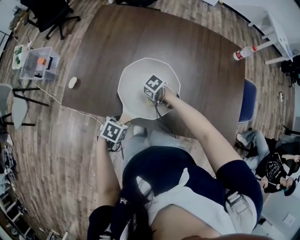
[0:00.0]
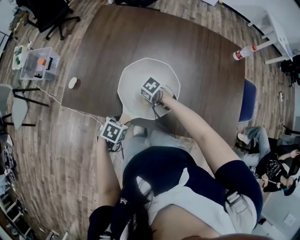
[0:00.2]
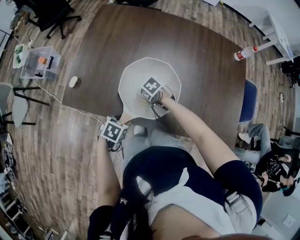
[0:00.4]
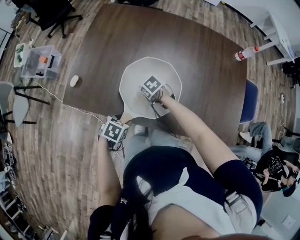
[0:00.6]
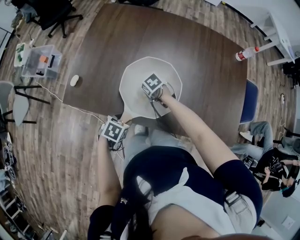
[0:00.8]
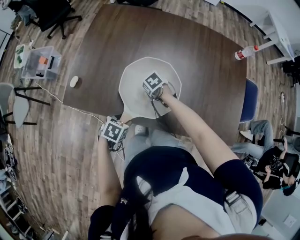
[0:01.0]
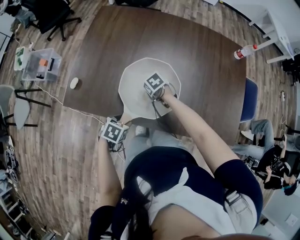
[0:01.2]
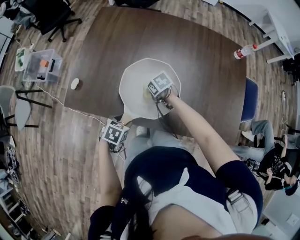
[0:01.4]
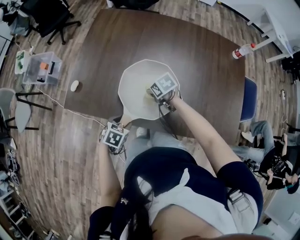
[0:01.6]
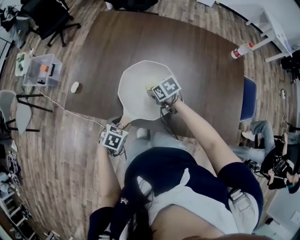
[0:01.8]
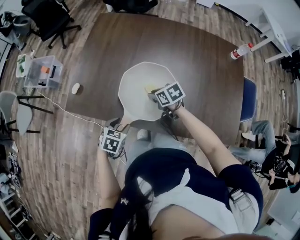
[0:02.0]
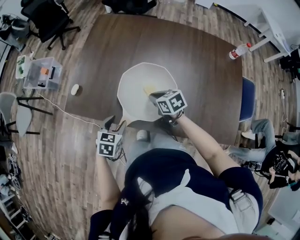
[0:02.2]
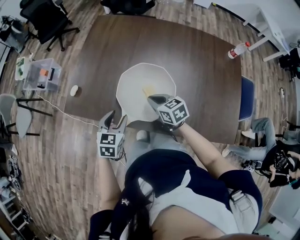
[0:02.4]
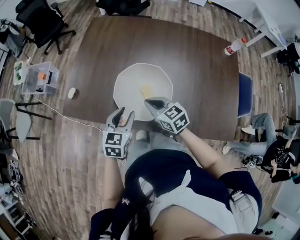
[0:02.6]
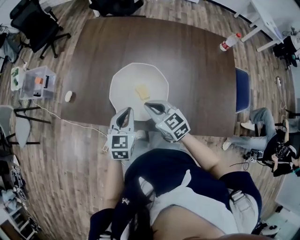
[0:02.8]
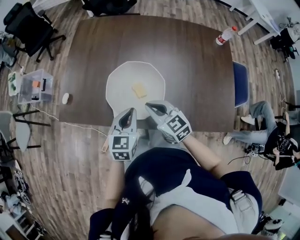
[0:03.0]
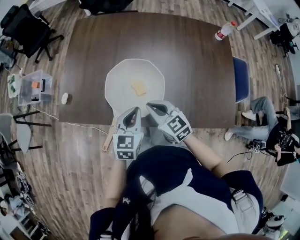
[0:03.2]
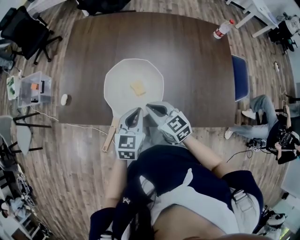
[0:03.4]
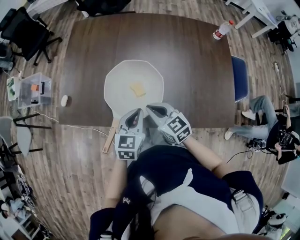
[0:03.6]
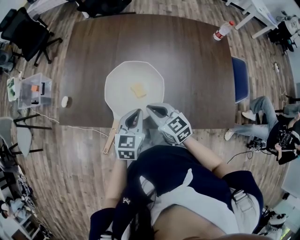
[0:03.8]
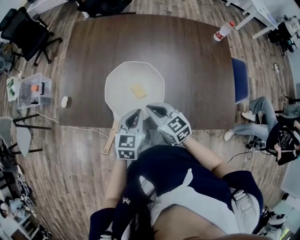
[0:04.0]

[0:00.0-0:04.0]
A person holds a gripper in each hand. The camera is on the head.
0.0 to 1.4 s: The right gripper shifts by about 5 cm, and rotates some 20 degrees.
1.4 to 2.6 s: Both grippers travel together upward, about 15 cm. The left gripper angles its fingers upward, by about 30 degrees; the right gripper points its fingers about 30 degrees further upward.
2.6 to 4.0 s: The right gripper ends up some 5 cm from where it was; the left gripper heads to the right, covering approximately 10 cm, and closes.

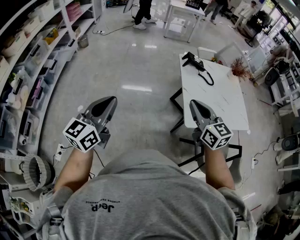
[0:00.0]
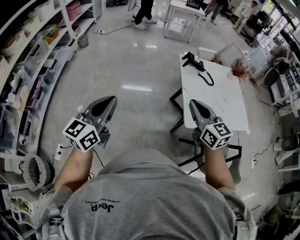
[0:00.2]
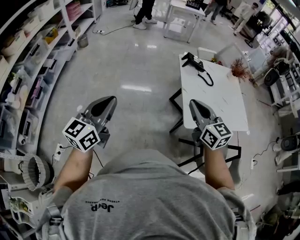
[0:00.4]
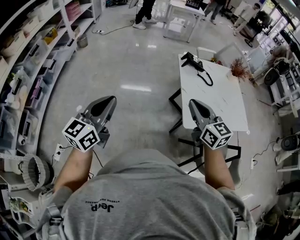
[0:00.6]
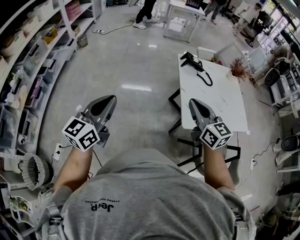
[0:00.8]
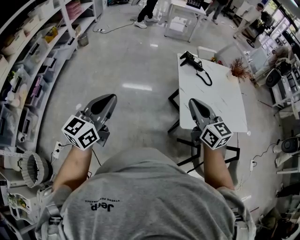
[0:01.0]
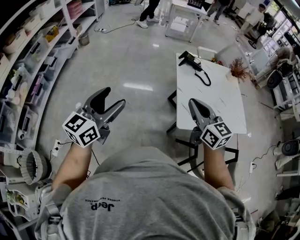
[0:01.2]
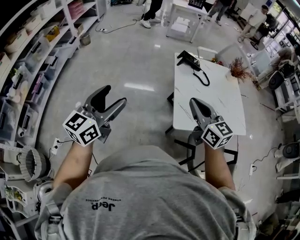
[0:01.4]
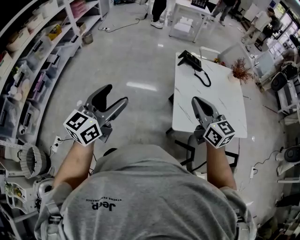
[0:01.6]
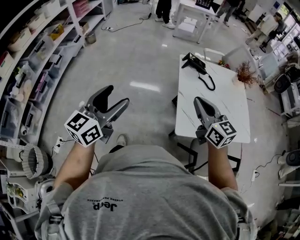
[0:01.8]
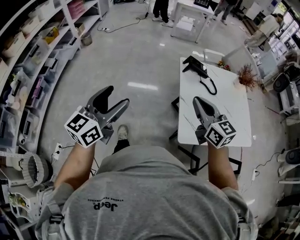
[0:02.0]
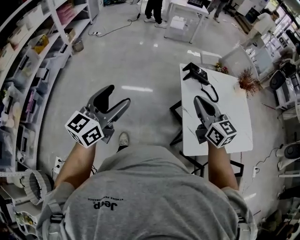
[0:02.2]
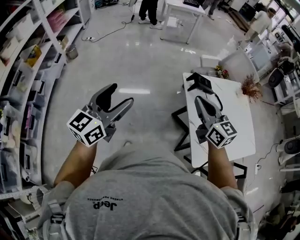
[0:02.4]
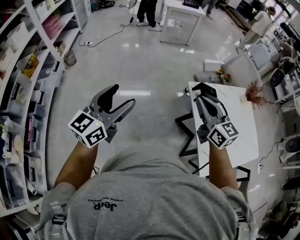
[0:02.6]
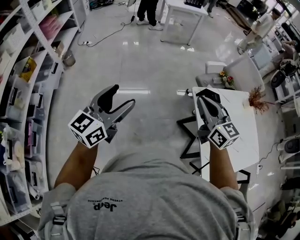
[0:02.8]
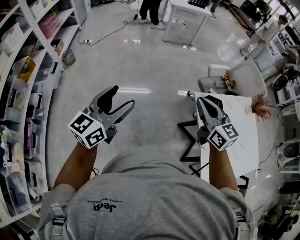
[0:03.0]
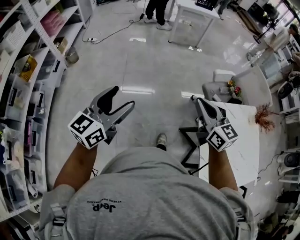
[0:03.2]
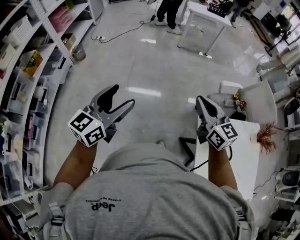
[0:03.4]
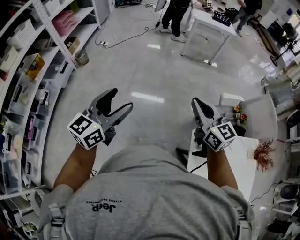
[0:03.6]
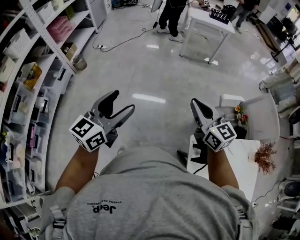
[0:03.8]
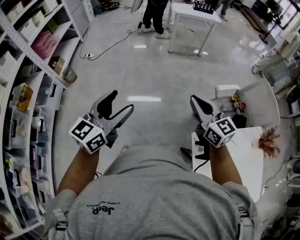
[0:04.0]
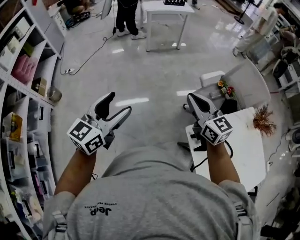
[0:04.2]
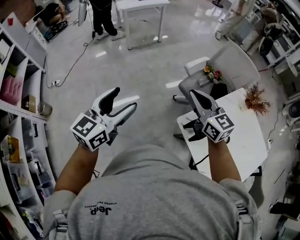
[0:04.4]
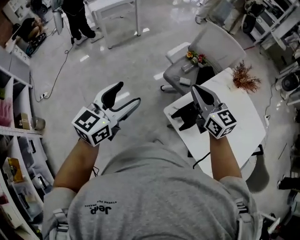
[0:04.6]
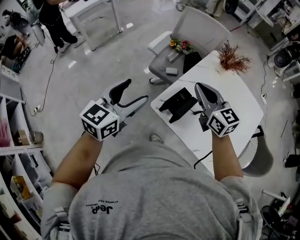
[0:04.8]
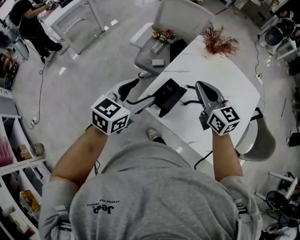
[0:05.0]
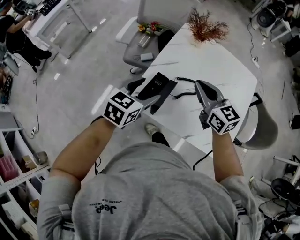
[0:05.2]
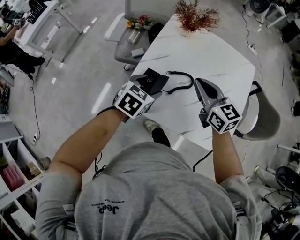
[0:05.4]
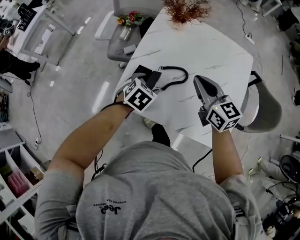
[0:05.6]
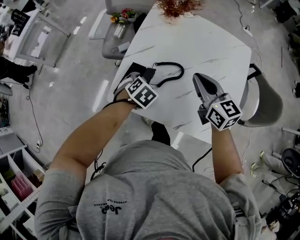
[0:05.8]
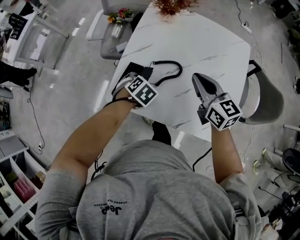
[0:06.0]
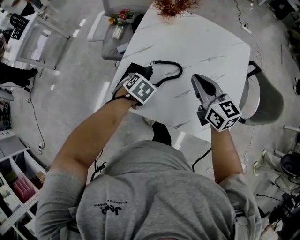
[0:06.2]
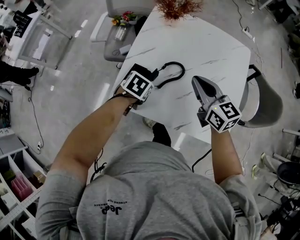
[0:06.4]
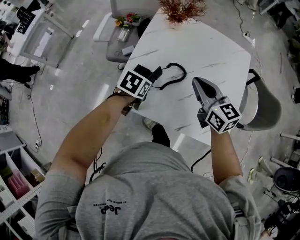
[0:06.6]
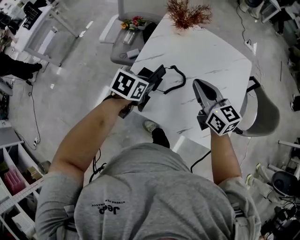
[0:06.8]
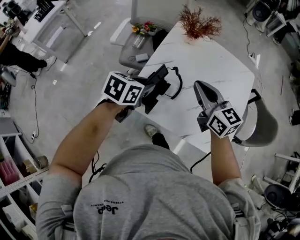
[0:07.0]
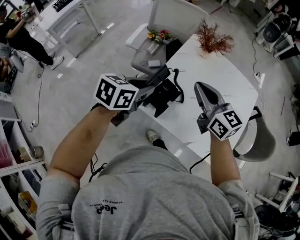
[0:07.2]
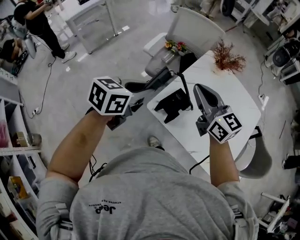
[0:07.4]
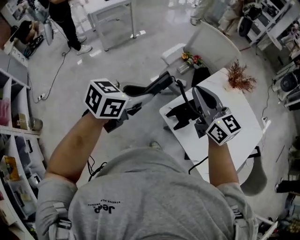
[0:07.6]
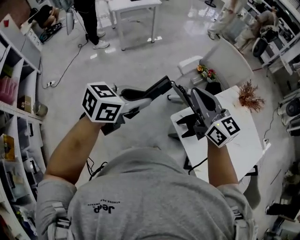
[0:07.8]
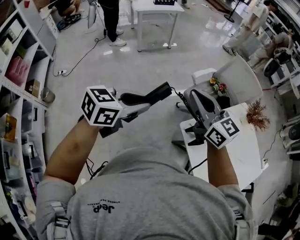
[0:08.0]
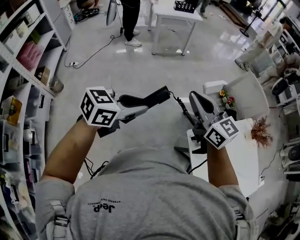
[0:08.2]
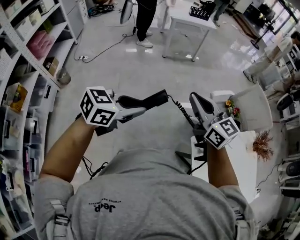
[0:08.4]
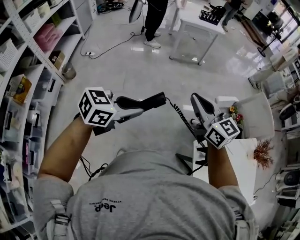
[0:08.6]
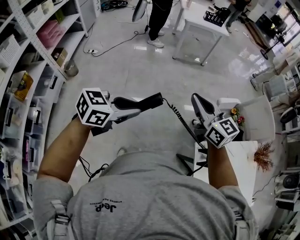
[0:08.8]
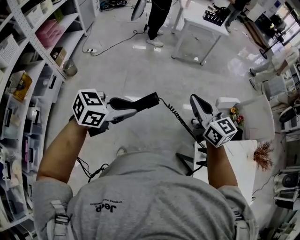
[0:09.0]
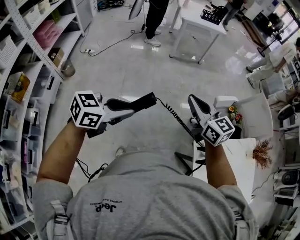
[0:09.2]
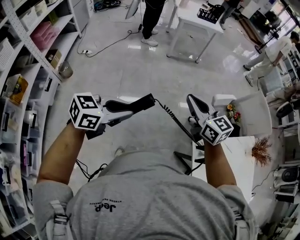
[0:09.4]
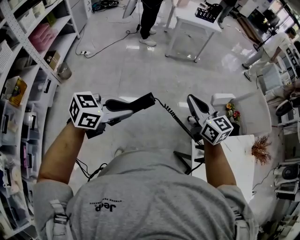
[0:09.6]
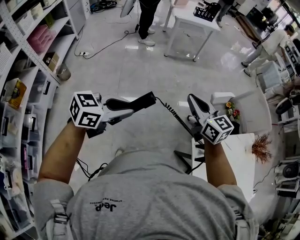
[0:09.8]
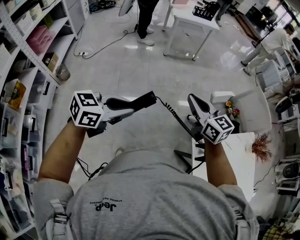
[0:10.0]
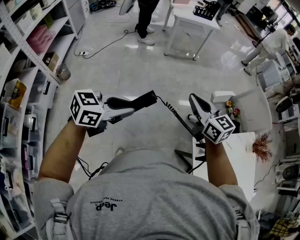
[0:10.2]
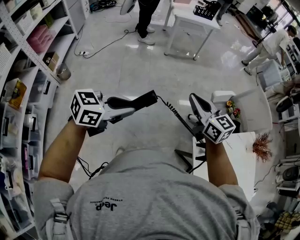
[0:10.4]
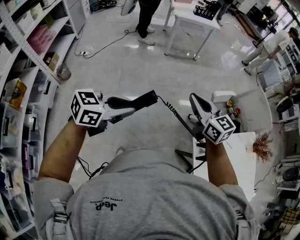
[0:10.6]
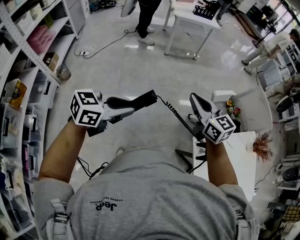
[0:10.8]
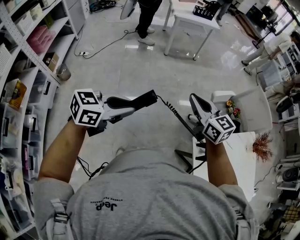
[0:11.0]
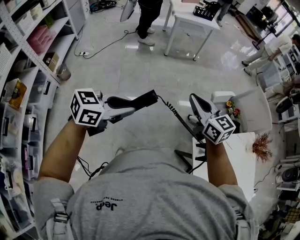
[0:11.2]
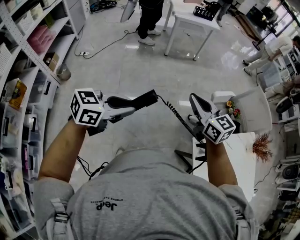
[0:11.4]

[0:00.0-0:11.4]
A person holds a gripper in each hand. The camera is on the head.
0.0 to 1.4 s: Both grippers travel together to the right, about 10 cm. The left gripper opens up.
1.4 to 2.8 s: Both grippers are carried forward, roughly 50 cm.
2.8 to 4.2 s: The two grippers go some 35 cm forward.
4.2 to 5.6 s: Both grippers are carried about 50 cm. The left gripper angles its fingers downward, by roughly 50 degrees; the right gripper changes its angle by about 50 degrees.
5.6 to 7.2 s: The left gripper shifts approximately 20 cm upward and to the left, turns by about 30 degrees, and closes. The right gripper moves to the left and upward, approximately 15 cm.
7.2 to 8.6 s: Both grippers are carried approximately 50 cm. The right gripper turns by about 60 degrees, while the left gripper rotates approximately 40 degrees.
8.6 to 10.0 s: The grippers stay close to where they were, moving slightly.
10.0 to 11.4 s: Both grippers stay put.

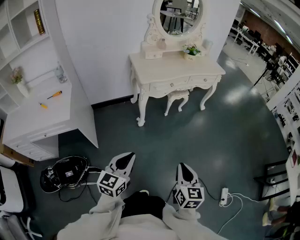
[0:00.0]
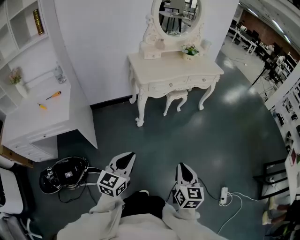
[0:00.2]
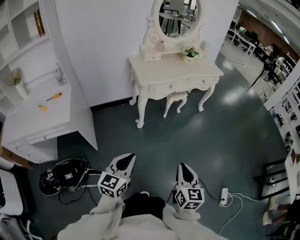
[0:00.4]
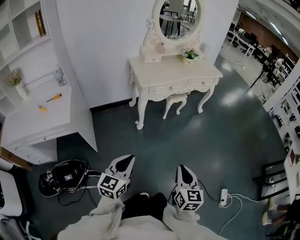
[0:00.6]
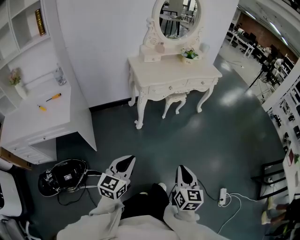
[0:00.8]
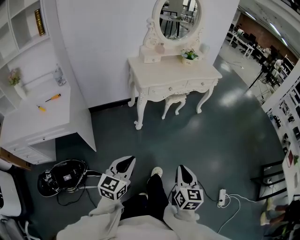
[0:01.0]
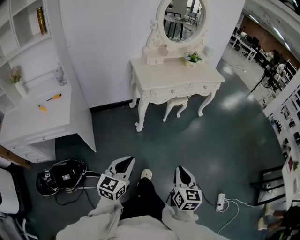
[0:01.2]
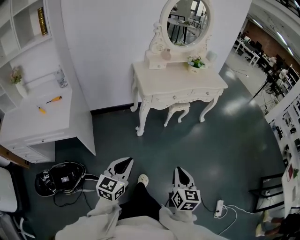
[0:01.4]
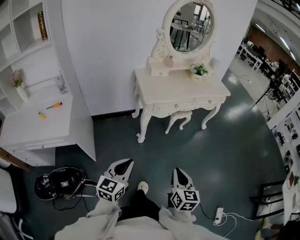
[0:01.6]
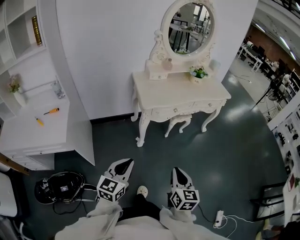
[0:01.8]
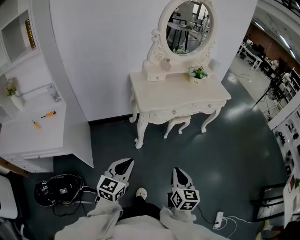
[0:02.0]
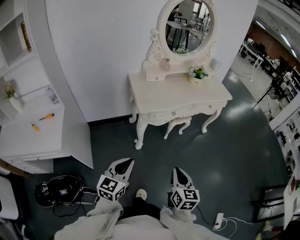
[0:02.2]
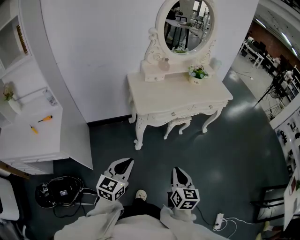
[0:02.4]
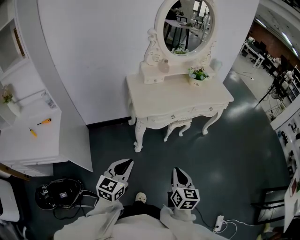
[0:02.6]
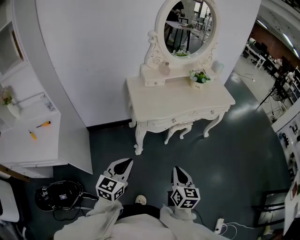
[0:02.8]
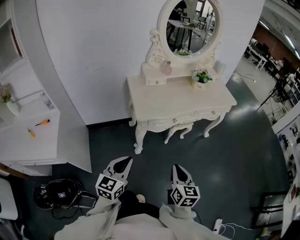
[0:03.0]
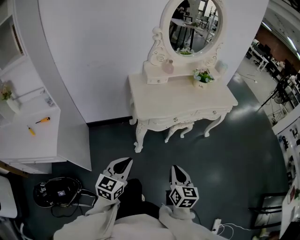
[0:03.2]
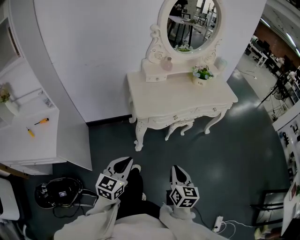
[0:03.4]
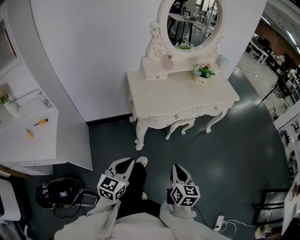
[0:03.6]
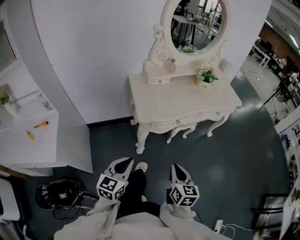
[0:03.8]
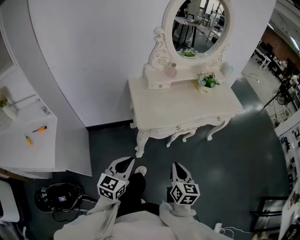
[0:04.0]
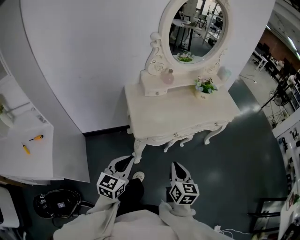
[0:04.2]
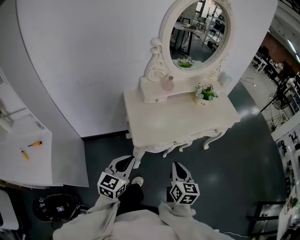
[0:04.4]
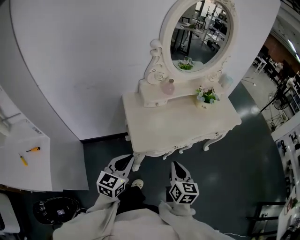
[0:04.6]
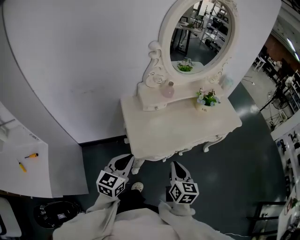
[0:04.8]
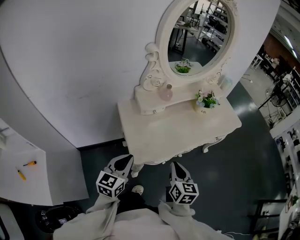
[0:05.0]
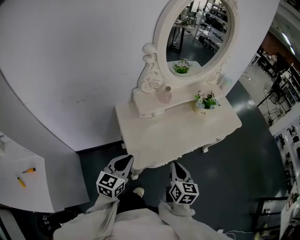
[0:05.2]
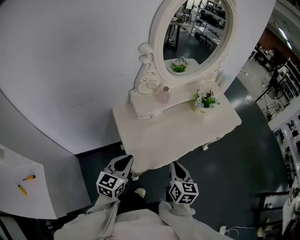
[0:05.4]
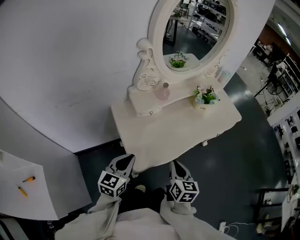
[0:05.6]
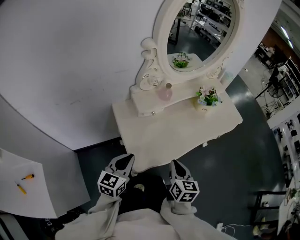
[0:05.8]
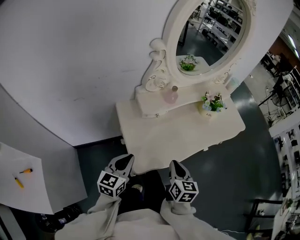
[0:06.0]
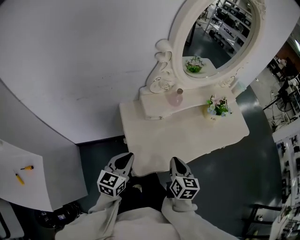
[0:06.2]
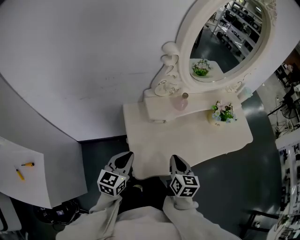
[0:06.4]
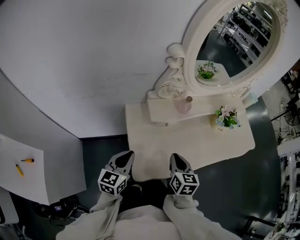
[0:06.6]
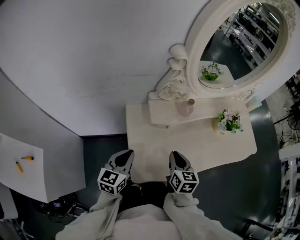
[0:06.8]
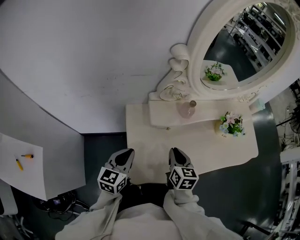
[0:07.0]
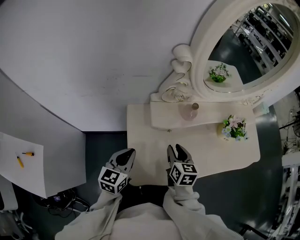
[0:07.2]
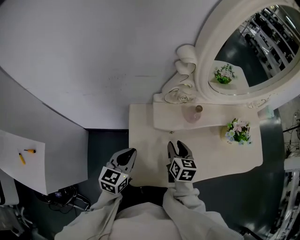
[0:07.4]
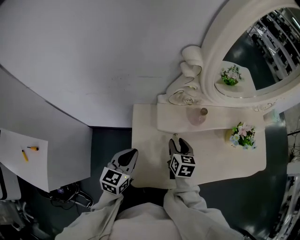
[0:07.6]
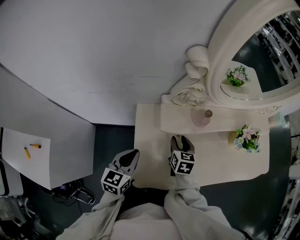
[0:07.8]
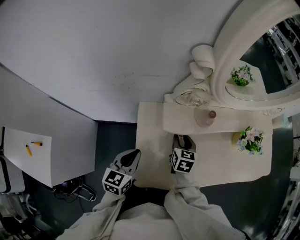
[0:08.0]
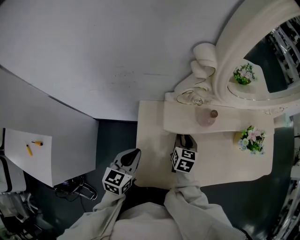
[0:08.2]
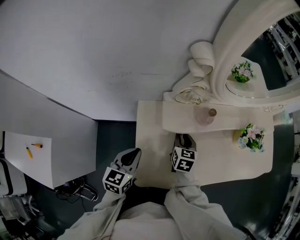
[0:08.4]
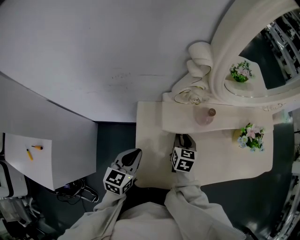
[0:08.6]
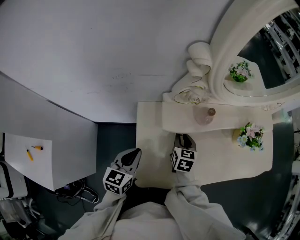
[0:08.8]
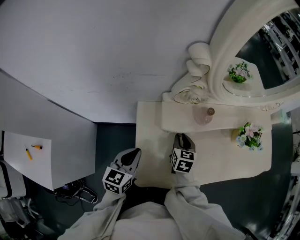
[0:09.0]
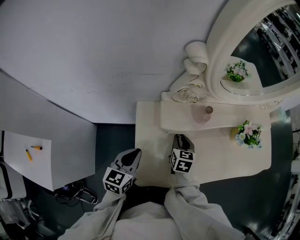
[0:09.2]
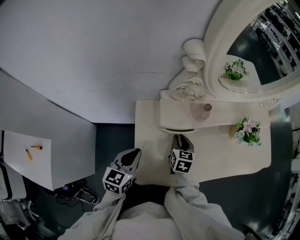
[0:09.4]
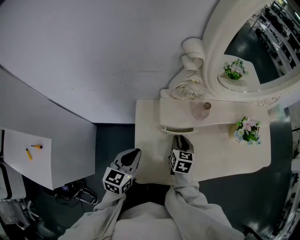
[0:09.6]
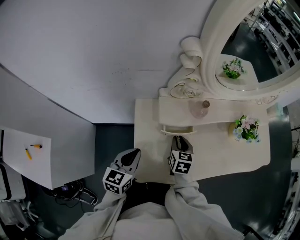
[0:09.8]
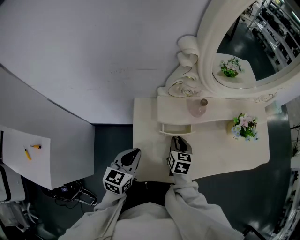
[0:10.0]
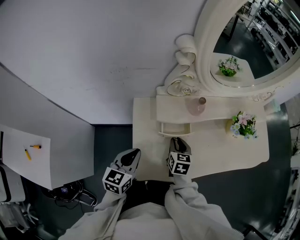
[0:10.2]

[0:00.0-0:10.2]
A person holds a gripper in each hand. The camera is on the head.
0.0 to 1.4 s: The left gripper ends up approximately 5 cm from where it was. The right gripper heads forward, covering approximately 5 cm.
1.4 to 3.0 s: Both grippers travel together forward, some 25 cm.
3.0 to 4.4 s: The two grippers go about 15 cm forward.
4.4 to 5.8 s: The grippers both shift forward by about 15 cm.
5.8 to 7.2 s: The left gripper moves forward, roughly 10 cm. Meanwhile the right gripper travels forward by some 20 cm, swivels approximately 20 degrees, and opens its fingers.
7.2 to 8.8 s: The right gripper moves forward and downward, about 10 cm.
8.8 to 10.2 s: The right gripper heads backward, covering about 5 cm.
